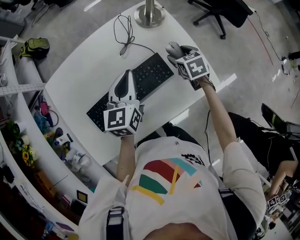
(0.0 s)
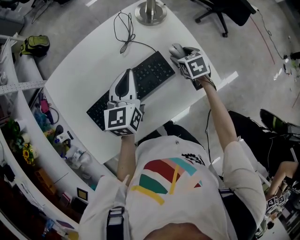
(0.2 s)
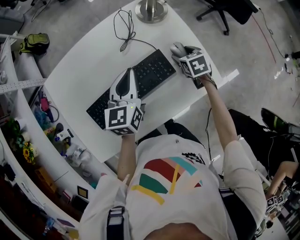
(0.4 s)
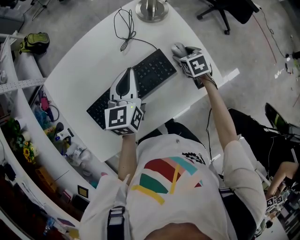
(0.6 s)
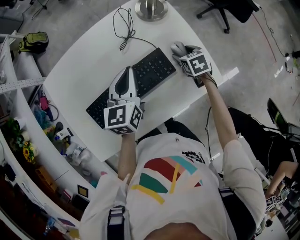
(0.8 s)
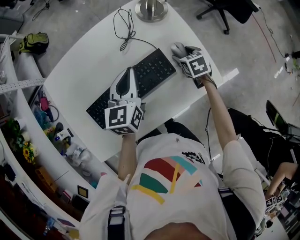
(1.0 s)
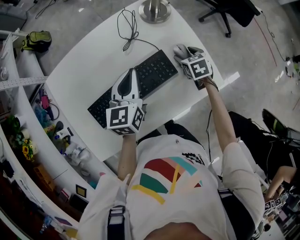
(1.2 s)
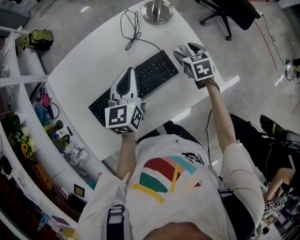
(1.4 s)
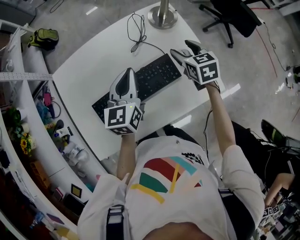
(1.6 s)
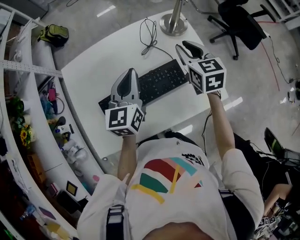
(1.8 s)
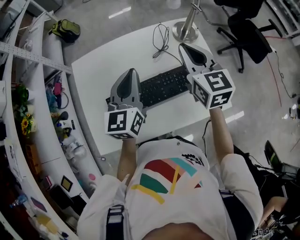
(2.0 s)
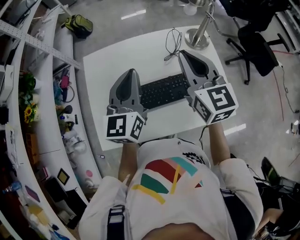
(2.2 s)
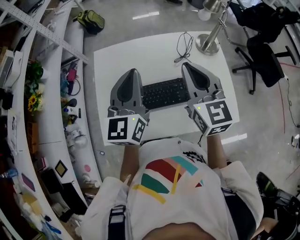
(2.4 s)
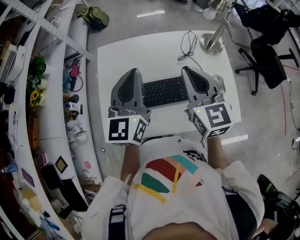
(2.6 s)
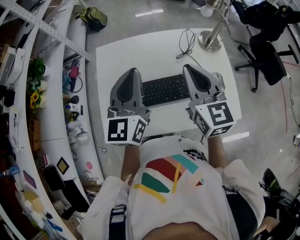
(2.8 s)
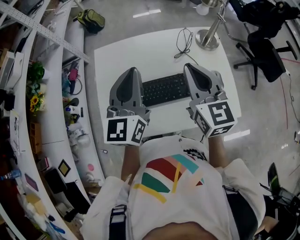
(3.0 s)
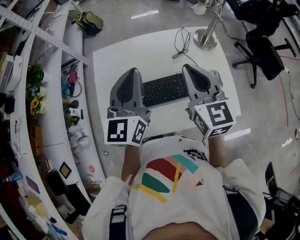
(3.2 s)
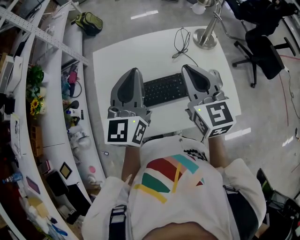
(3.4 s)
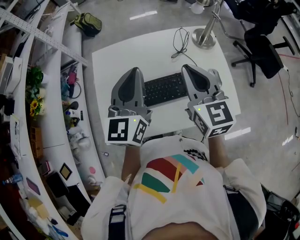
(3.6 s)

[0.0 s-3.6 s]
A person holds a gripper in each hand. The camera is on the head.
0.0 to 1.8 s: The right gripper shifts roughly 20 cm upward and to the left, rotates some 30 degrees, and closes up. Meanwhile the left gripper goes about 10 cm to the left and upward.
1.8 to 3.6 s: The left gripper goes some 15 cm upward, to the left and backward, while the right gripper goes approximately 20 cm to the left, upward and backward.

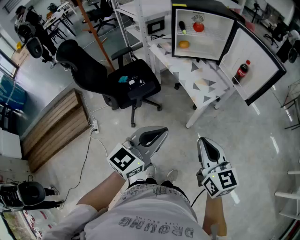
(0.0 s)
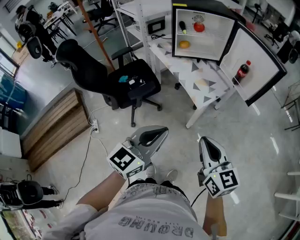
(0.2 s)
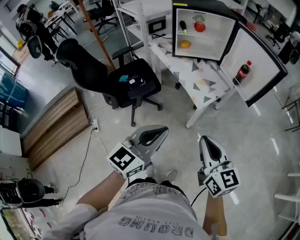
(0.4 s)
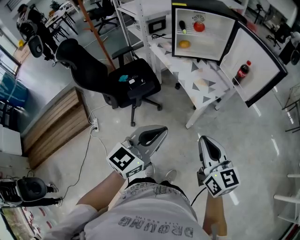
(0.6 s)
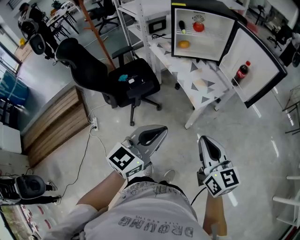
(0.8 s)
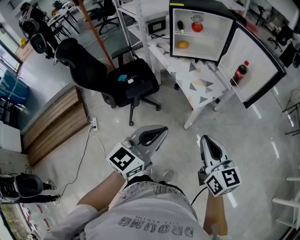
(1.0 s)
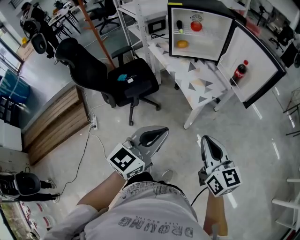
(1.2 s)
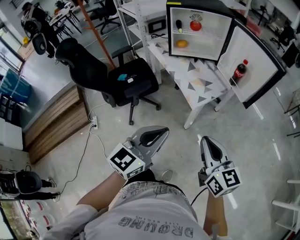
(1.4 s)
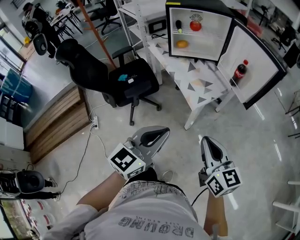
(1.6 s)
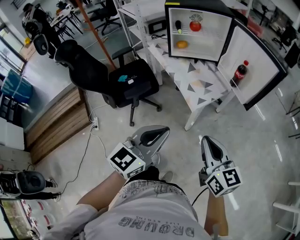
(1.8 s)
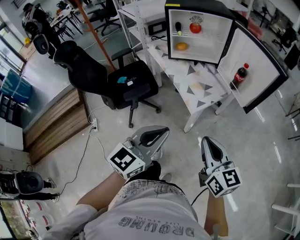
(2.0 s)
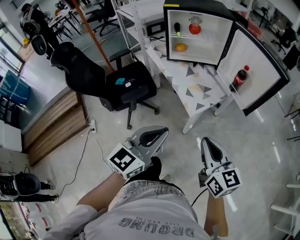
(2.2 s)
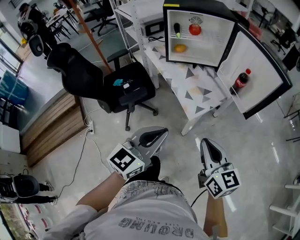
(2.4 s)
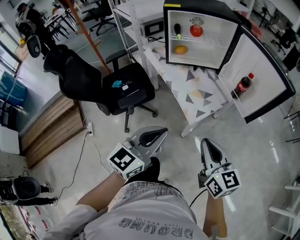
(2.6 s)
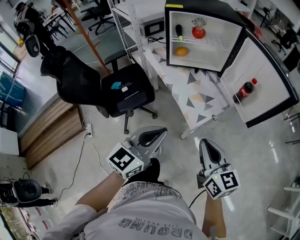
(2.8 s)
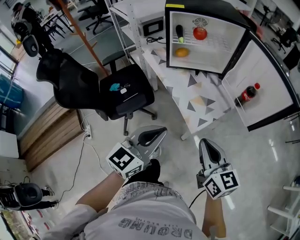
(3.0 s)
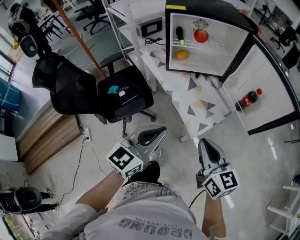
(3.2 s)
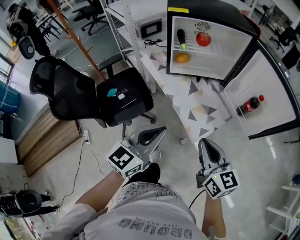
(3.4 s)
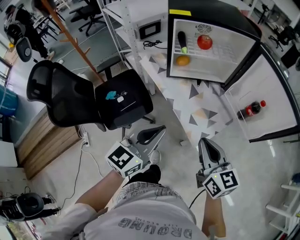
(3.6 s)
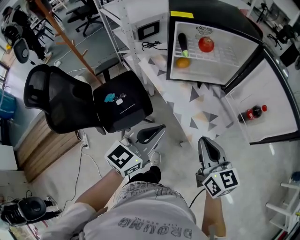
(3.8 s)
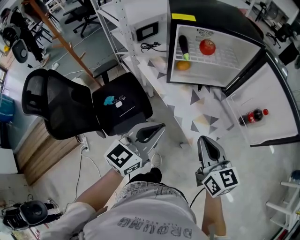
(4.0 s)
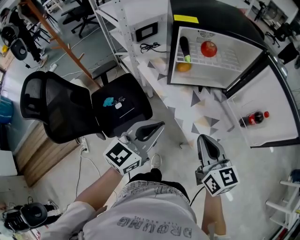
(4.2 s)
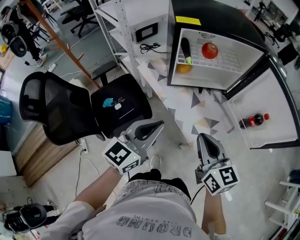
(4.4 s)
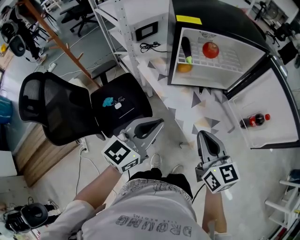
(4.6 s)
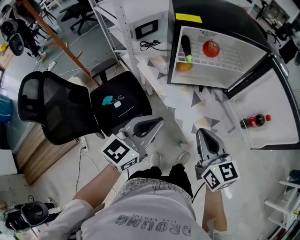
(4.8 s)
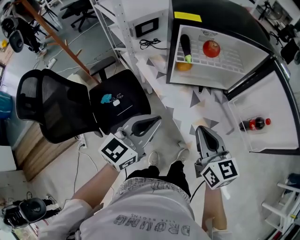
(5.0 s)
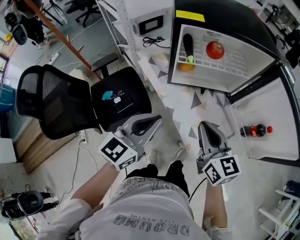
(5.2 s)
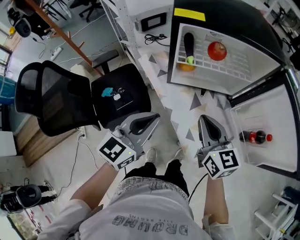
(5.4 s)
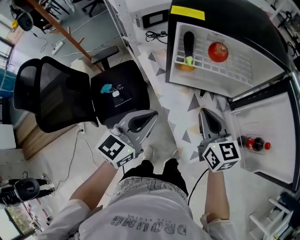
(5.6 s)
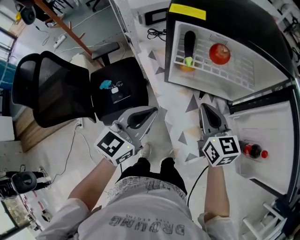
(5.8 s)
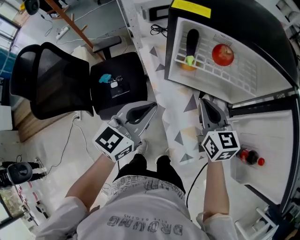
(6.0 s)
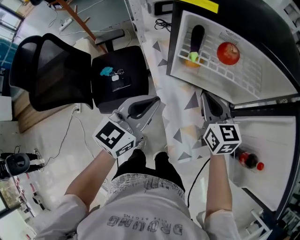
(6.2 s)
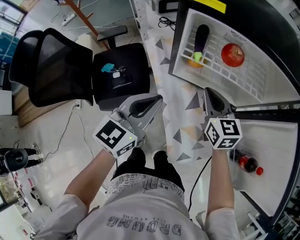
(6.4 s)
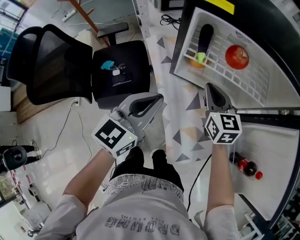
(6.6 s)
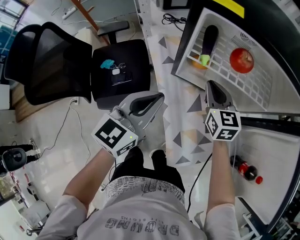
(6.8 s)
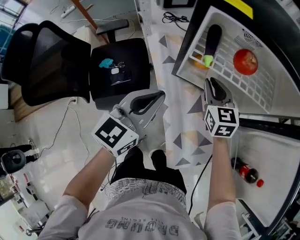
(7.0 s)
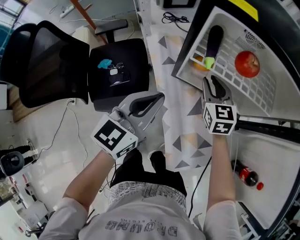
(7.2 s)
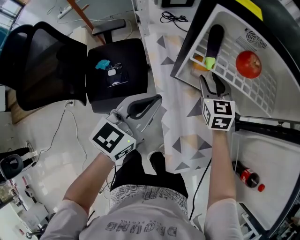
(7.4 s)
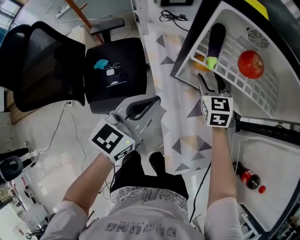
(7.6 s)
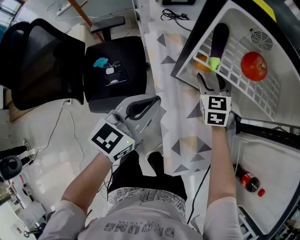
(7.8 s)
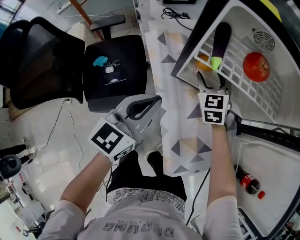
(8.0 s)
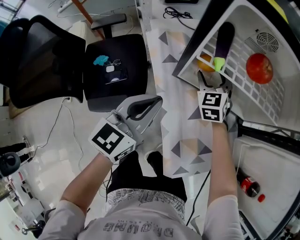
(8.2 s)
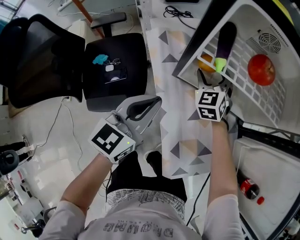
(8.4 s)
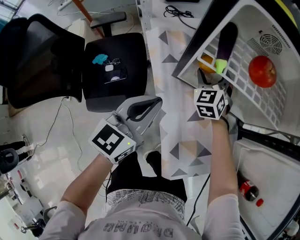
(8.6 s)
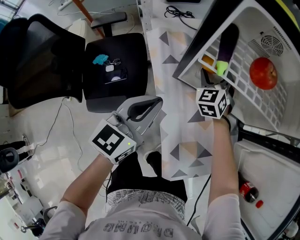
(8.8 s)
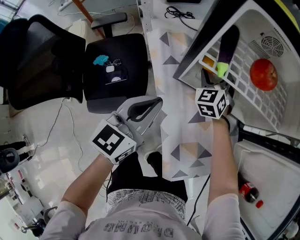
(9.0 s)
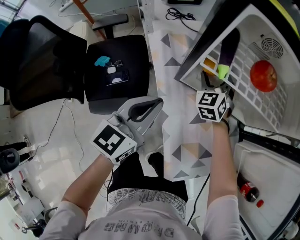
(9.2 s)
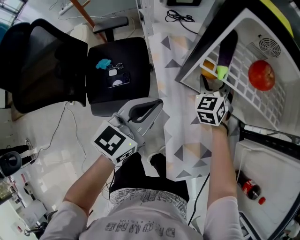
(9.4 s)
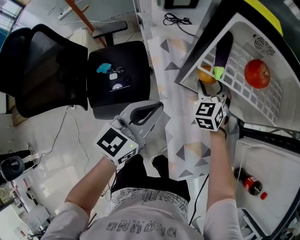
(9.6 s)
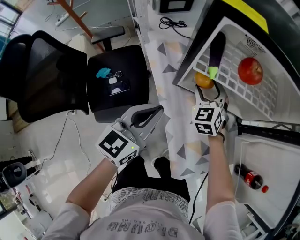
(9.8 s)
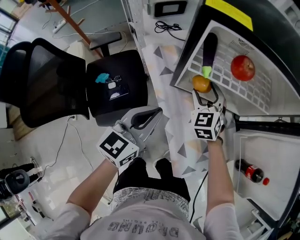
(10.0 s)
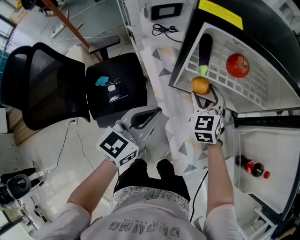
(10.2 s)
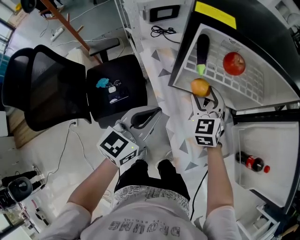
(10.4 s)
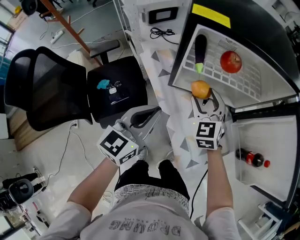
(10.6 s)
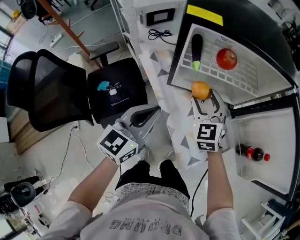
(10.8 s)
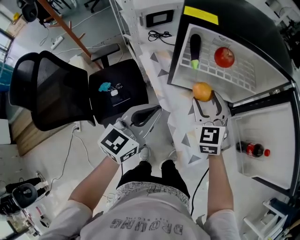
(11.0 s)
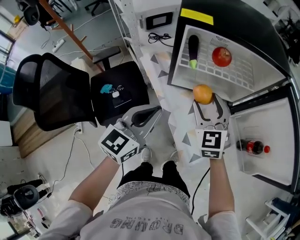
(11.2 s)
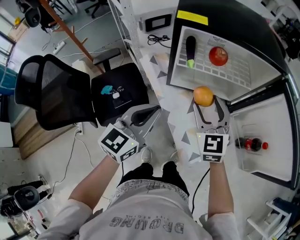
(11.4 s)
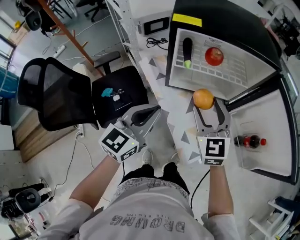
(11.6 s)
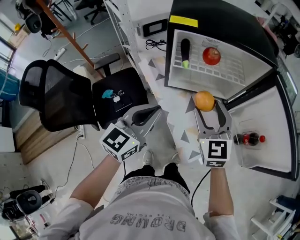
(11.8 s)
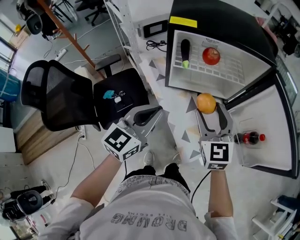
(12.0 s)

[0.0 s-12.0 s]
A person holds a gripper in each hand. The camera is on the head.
0.0 to 1.6 s: Both grippers move to the right, some 10 cm.
1.6 to 3.0 s: The grippers both shift forward by approximately 15 cm.
3.0 to 4.4 s: Both grippers travel together forward and to the left, about 20 cm.
4.4 to 6.0 s: The left gripper travels forward by about 10 cm. The right gripper goes about 20 cm forward.
6.0 to 7.6 s: The left gripper goes some 5 cm downward; the right gripper moves forward and downward, about 20 cm, rotates about 30 degrees, and opens.
7.6 to 9.0 s: The right gripper travels forward by approximately 5 cm, and swivels roughly 30 degrees.
9.0 to 10.4 s: The left gripper moves upward, about 5 cm. Meanwhile the right gripper goes about 15 cm backward and upward.
10.4 to 12.0 s: The right gripper is displaced upward, backward and to the right by some 20 cm, and changes its angle by roughly 20 degrees. The left gripper goes some 10 cm upward and backward.

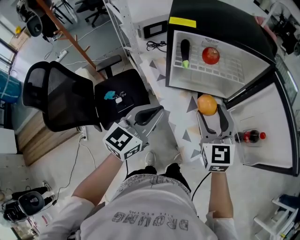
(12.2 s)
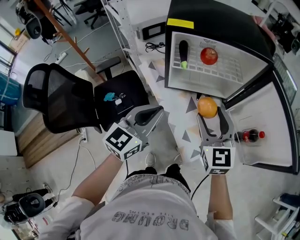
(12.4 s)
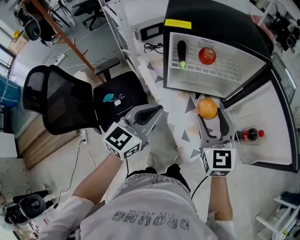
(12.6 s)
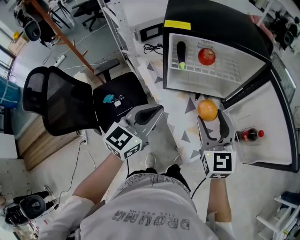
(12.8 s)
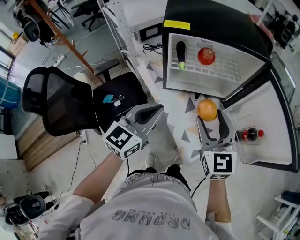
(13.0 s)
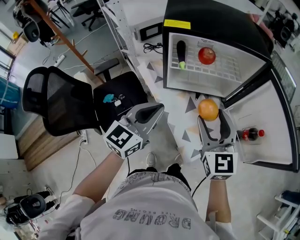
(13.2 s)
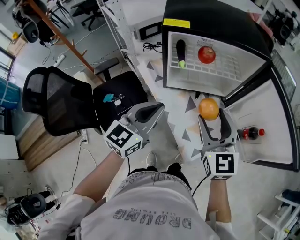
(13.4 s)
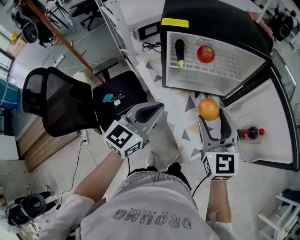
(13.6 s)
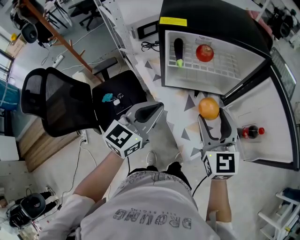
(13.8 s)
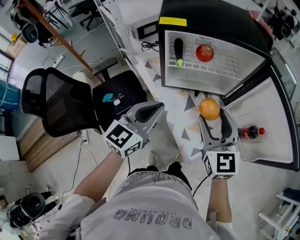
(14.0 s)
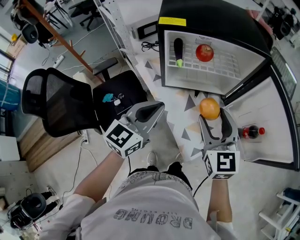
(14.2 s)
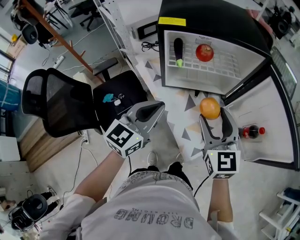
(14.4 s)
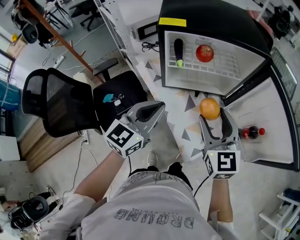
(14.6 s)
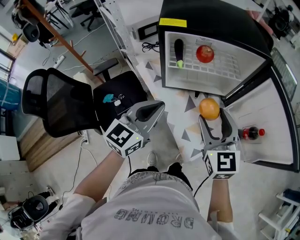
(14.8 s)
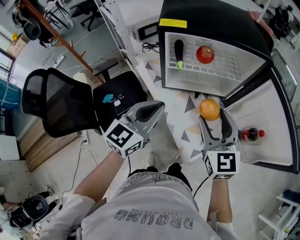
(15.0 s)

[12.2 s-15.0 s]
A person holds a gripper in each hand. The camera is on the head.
12.2 to 13.6 s: The grippers stay close to where they were, moving slightly.
13.6 to 15.0 s: Neither gripper changes place.

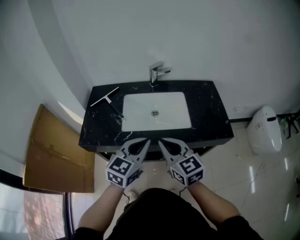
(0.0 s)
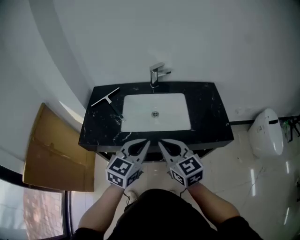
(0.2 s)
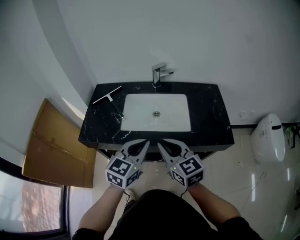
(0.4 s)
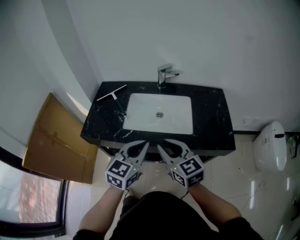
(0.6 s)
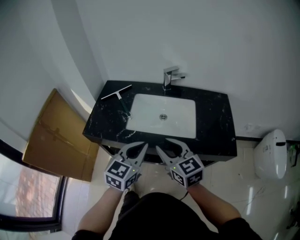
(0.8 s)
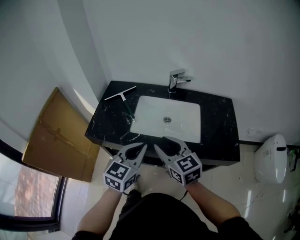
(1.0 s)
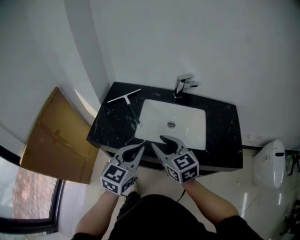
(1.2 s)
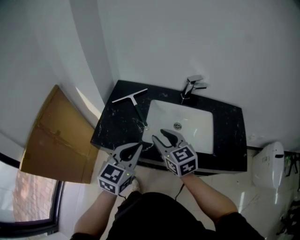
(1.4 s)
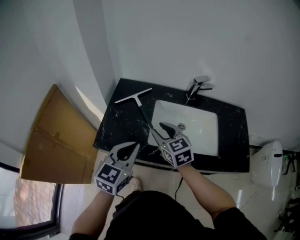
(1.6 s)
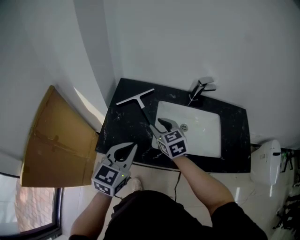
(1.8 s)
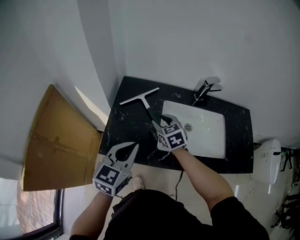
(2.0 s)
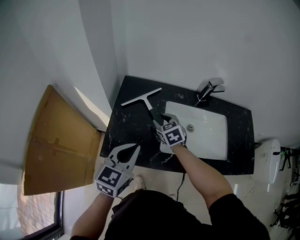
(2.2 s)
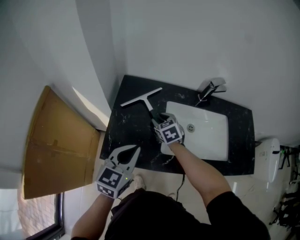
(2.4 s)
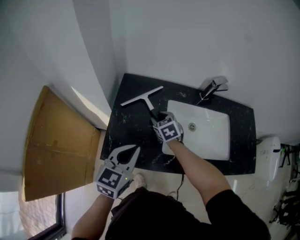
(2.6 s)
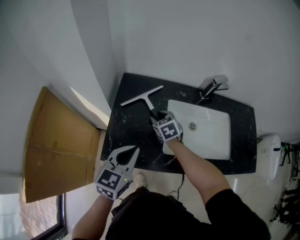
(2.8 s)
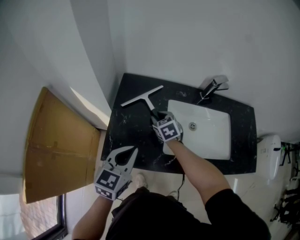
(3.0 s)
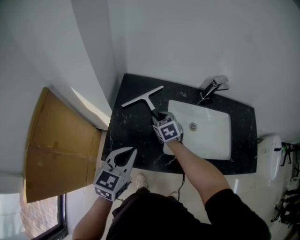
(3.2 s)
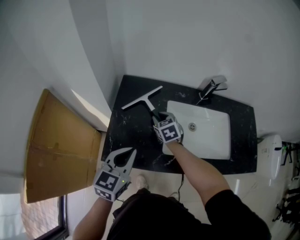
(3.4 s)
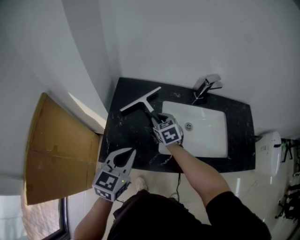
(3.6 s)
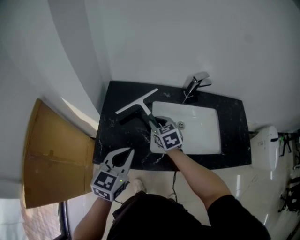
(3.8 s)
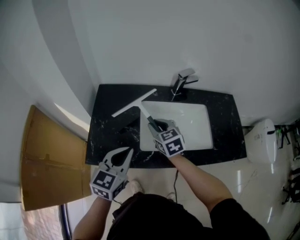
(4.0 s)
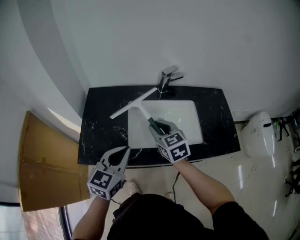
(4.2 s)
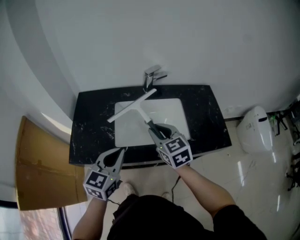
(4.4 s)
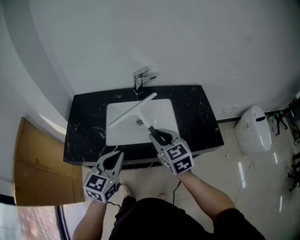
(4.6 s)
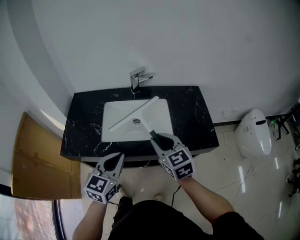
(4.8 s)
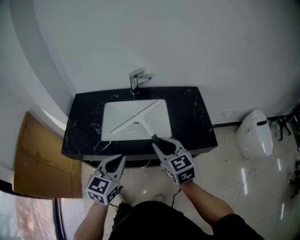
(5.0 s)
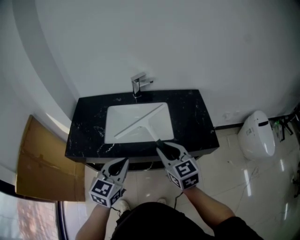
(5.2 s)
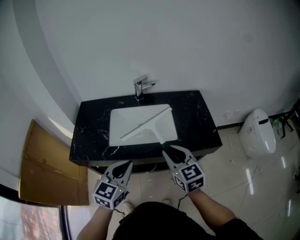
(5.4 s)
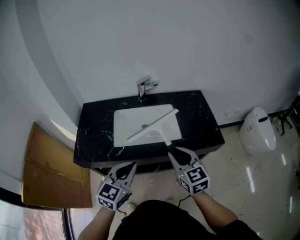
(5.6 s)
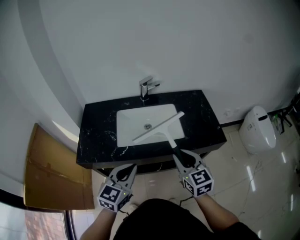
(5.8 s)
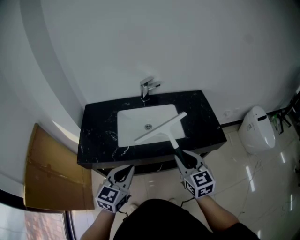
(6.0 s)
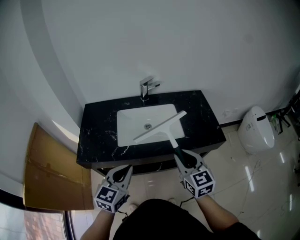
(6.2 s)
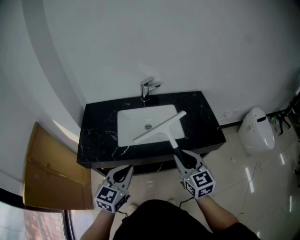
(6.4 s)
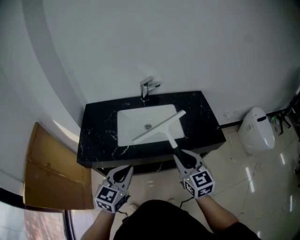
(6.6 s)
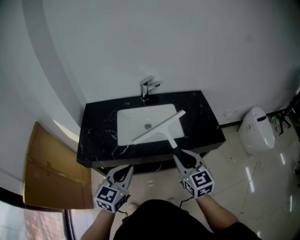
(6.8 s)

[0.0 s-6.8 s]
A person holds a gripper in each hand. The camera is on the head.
0.0 to 1.4 s: The right gripper heads forward and to the left, covering some 20 cm, and opens up. Meanwhile the left gripper travels to the left and forward by approximately 15 cm.
1.4 to 2.8 s: The right gripper travels forward, downward and to the left by approximately 30 cm, and rotates some 30 degrees. The left gripper heads to the left, forward and downward, covering about 15 cm.
2.8 to 4.0 s: The left gripper shifts roughly 10 cm to the right; the right gripper goes about 15 cm to the right, upward and backward.
4.0 to 5.4 s: Both grippers move to the right and backward, some 30 cm.
5.4 to 6.8 s: The left gripper is displaced to the left by roughly 5 cm.
